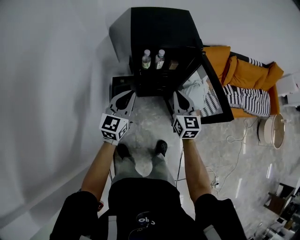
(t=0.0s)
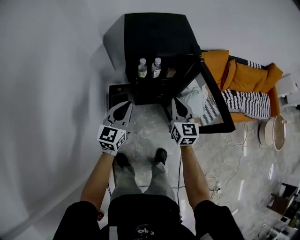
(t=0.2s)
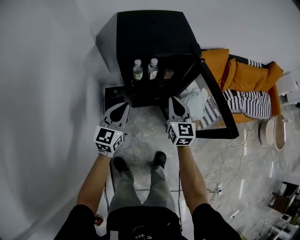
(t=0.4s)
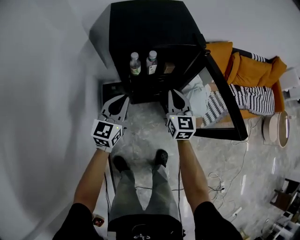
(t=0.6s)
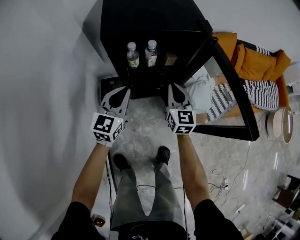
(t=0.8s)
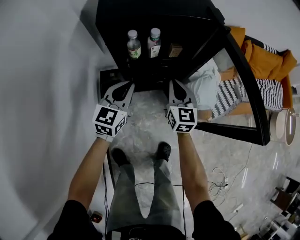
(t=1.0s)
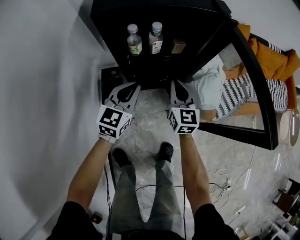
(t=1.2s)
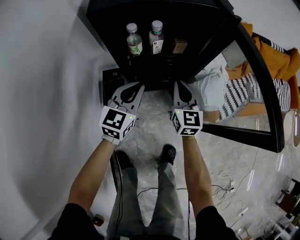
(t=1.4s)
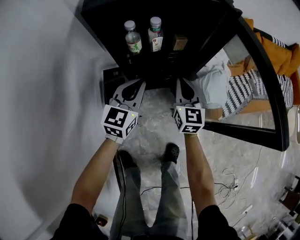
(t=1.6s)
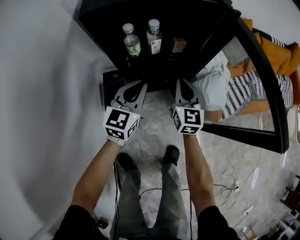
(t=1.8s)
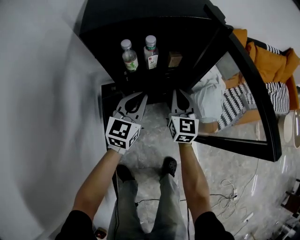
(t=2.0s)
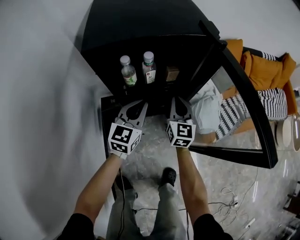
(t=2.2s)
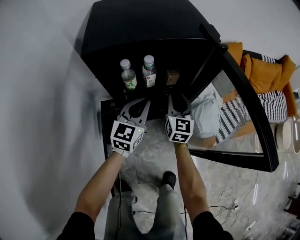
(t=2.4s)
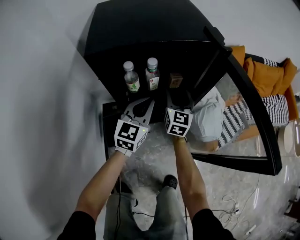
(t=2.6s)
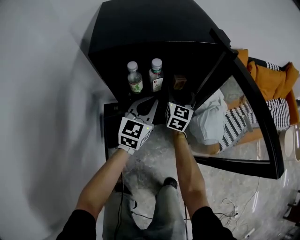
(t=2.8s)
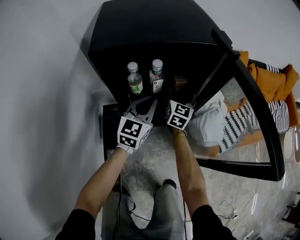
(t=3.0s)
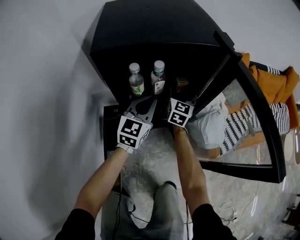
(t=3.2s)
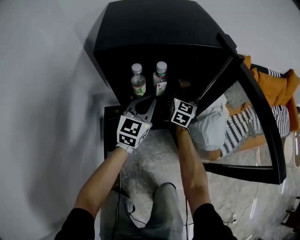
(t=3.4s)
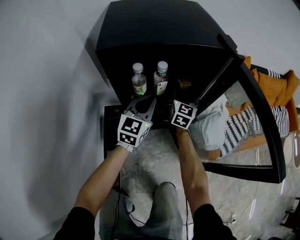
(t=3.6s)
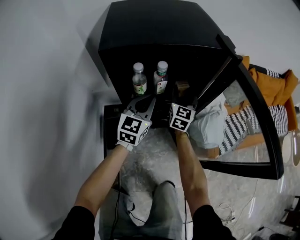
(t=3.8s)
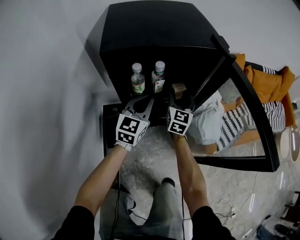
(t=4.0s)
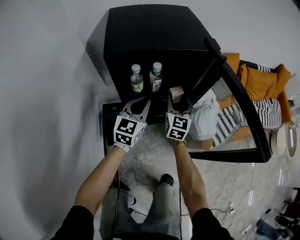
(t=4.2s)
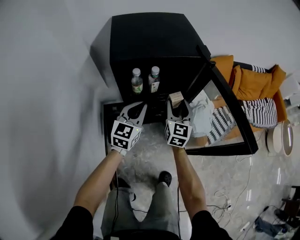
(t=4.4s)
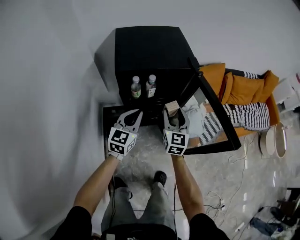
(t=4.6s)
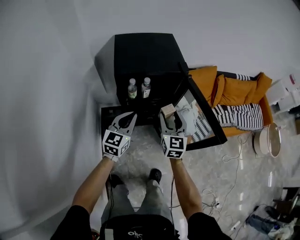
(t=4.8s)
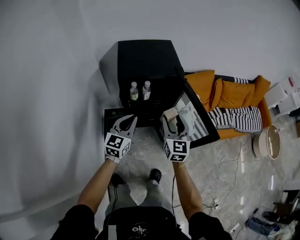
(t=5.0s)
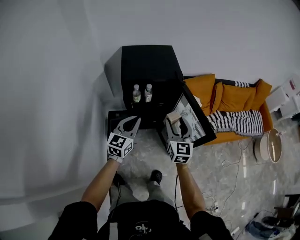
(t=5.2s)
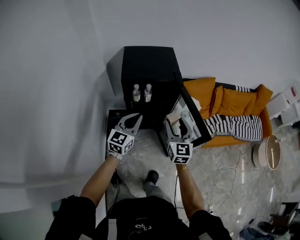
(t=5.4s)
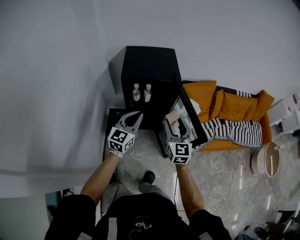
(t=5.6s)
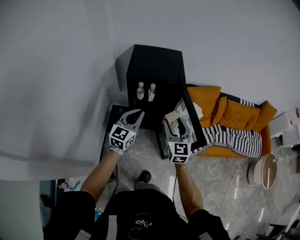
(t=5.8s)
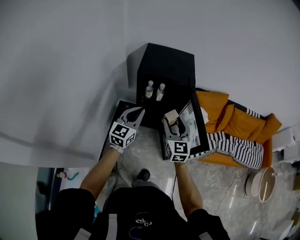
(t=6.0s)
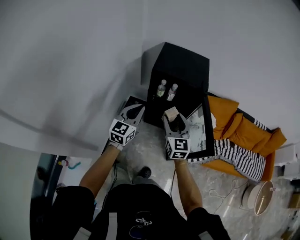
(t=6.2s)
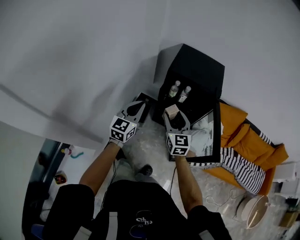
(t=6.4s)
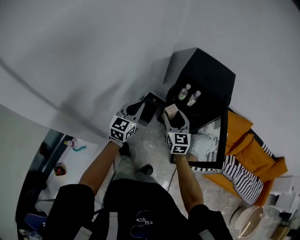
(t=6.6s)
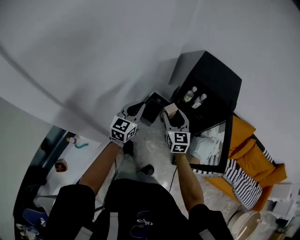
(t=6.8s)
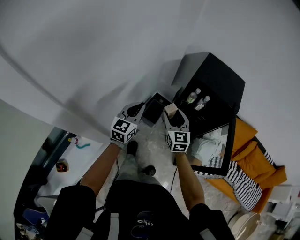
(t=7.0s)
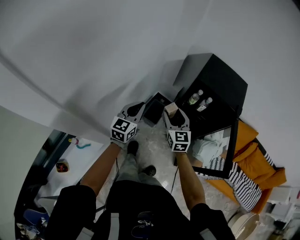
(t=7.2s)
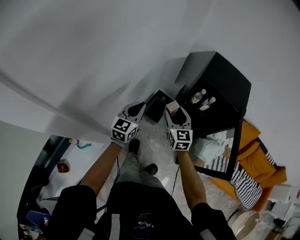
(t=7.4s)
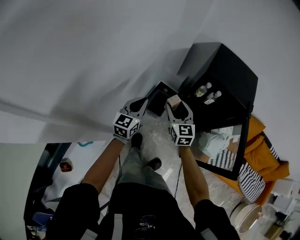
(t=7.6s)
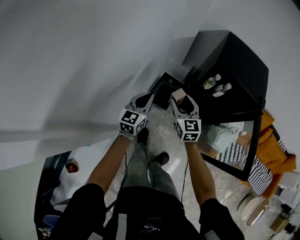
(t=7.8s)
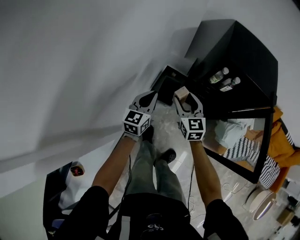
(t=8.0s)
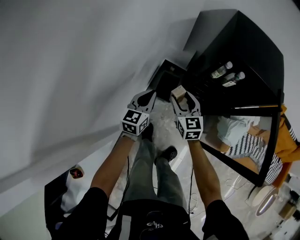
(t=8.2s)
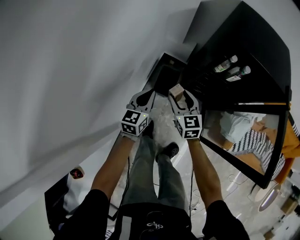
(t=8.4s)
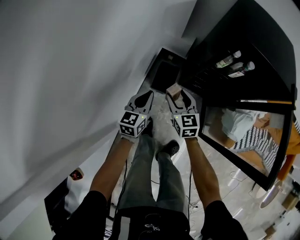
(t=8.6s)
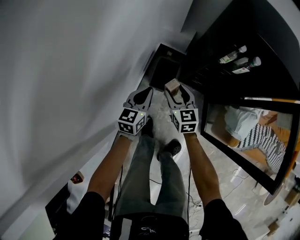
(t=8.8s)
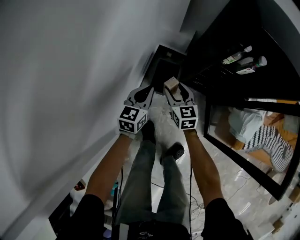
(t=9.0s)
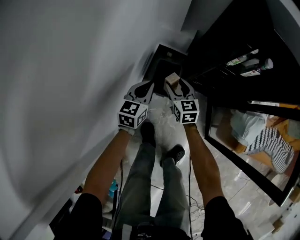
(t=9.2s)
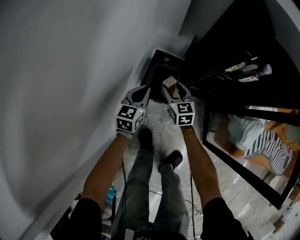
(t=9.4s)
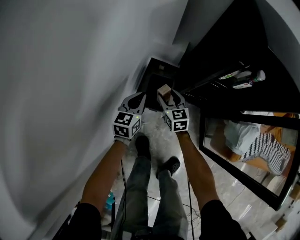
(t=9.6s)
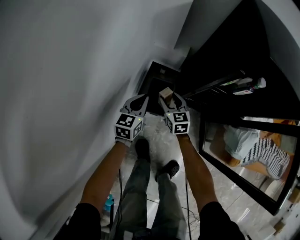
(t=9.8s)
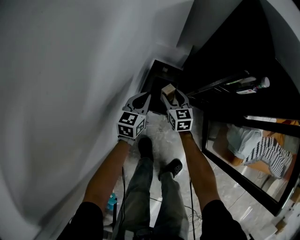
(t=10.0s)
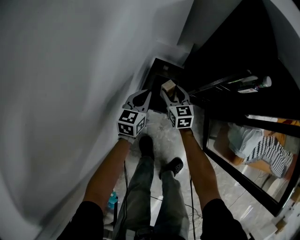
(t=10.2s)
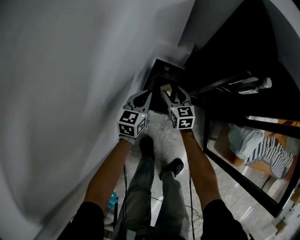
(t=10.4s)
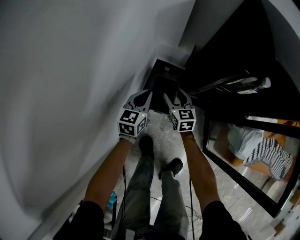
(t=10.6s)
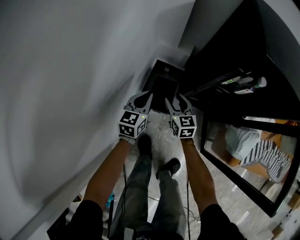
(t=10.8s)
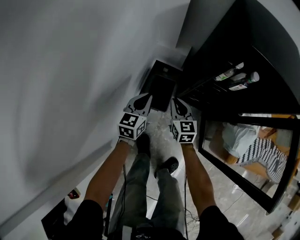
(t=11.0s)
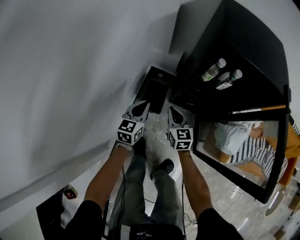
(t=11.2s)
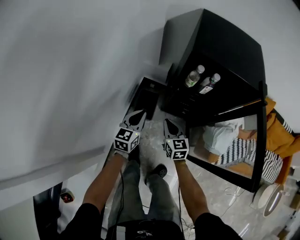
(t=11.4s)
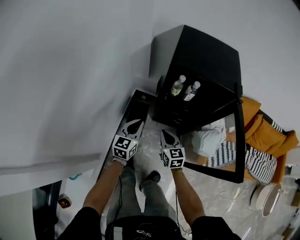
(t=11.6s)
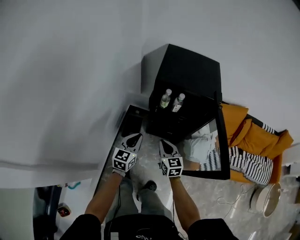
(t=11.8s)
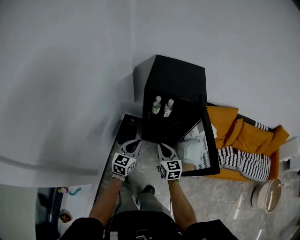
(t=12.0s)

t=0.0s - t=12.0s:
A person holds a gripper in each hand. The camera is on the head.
t=0.0s - t=1.6s: Both grippers move downward and forward, some 30 cm.
t=1.6s - t=3.0s: The right gripper shifts roughly 15 cm forward, and opens; the left gripper travels forward by roughly 10 cm.
t=3.0s - t=4.4s: The left gripper shifts approximately 10 cm upward and backward, while the right gripper moves backward and upward, some 20 cm.
t=4.4s - t=6.0s: Both grippers travel together upward and backward, some 30 cm. The right gripper turns by about 30 degrees.
t=6.0s - t=7.6s: The left gripper shifts by approximately 30 cm, and turns by about 30 degrees, while the right gripper moves roughly 30 cm, and swivels some 30 degrees.
t=7.6s - t=9.0s: The grippers both shift downward by roughly 35 cm.
t=9.0s - t=10.4s: The right gripper goes approximately 15 cm forward and downward; the left gripper heads forward, covering some 10 cm.
t=10.4s - t=12.0s: The grippers both shift upward, backward and to the right by roughly 50 cm. The right gripper closes up.

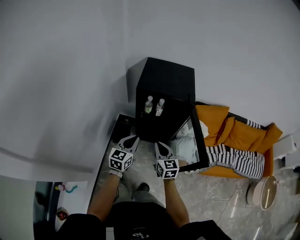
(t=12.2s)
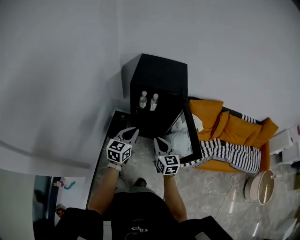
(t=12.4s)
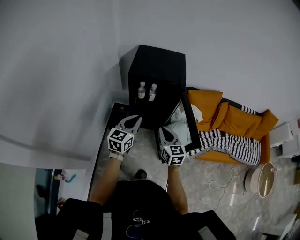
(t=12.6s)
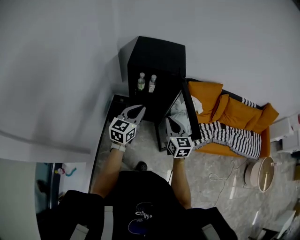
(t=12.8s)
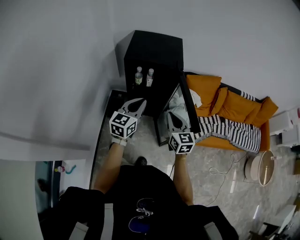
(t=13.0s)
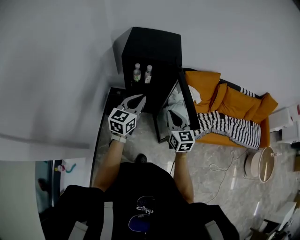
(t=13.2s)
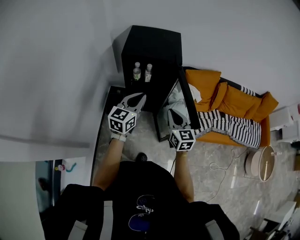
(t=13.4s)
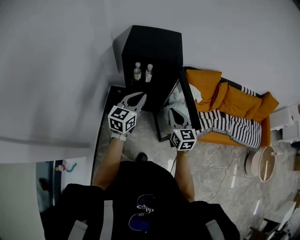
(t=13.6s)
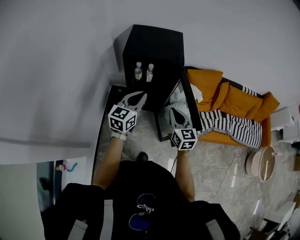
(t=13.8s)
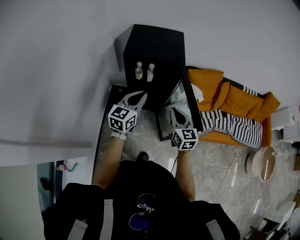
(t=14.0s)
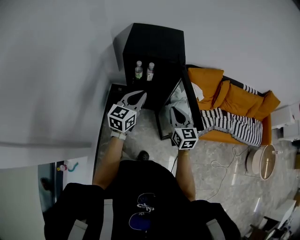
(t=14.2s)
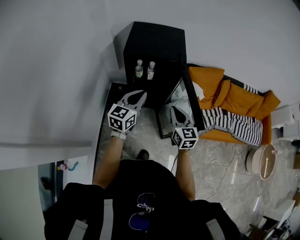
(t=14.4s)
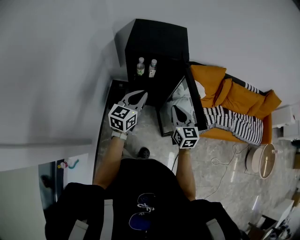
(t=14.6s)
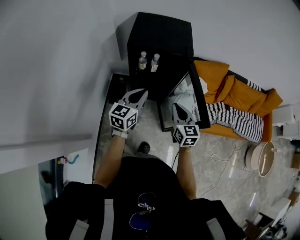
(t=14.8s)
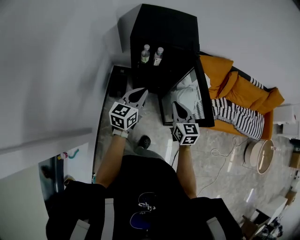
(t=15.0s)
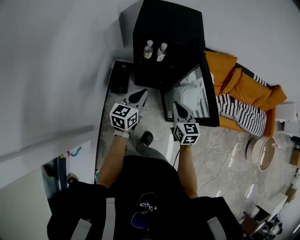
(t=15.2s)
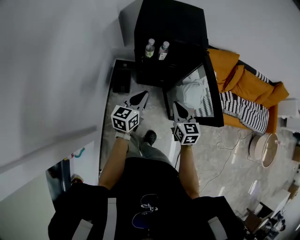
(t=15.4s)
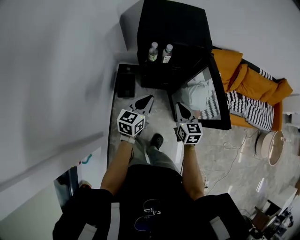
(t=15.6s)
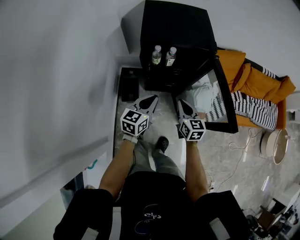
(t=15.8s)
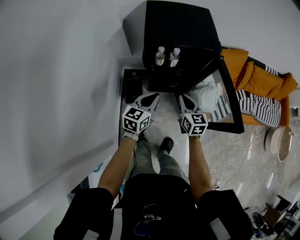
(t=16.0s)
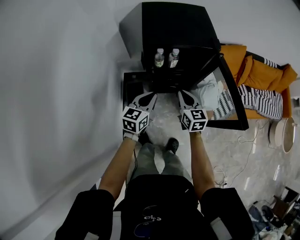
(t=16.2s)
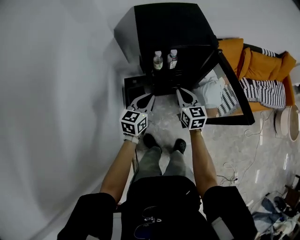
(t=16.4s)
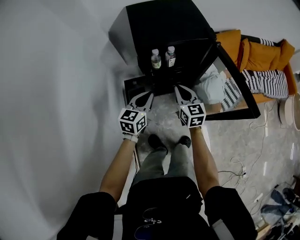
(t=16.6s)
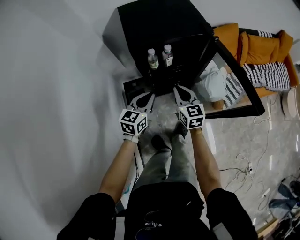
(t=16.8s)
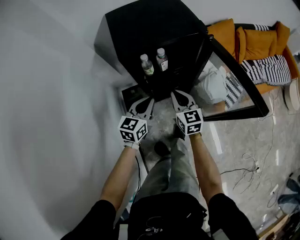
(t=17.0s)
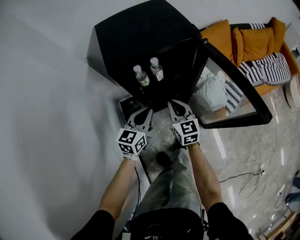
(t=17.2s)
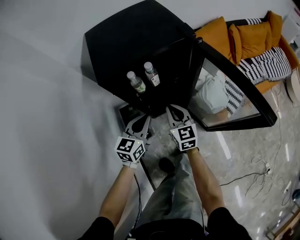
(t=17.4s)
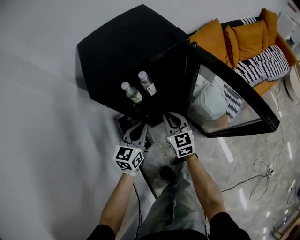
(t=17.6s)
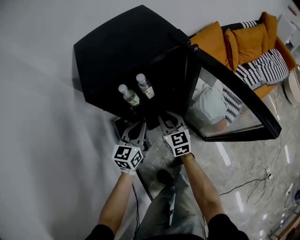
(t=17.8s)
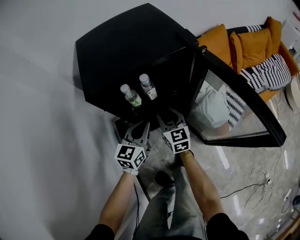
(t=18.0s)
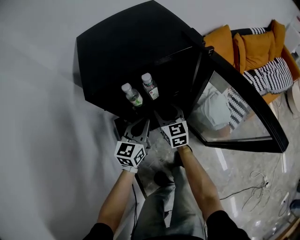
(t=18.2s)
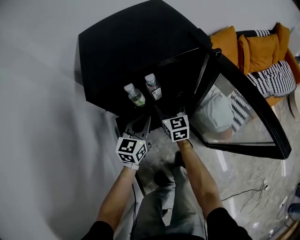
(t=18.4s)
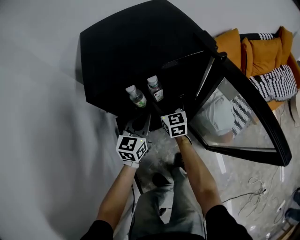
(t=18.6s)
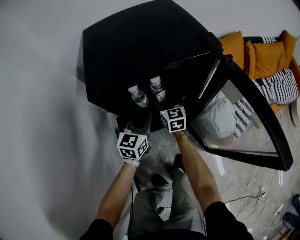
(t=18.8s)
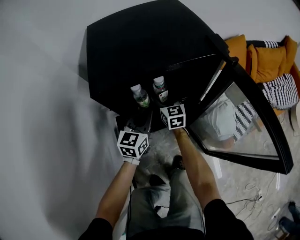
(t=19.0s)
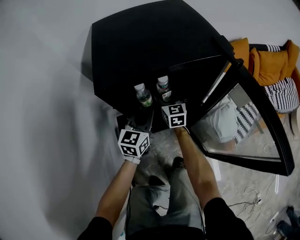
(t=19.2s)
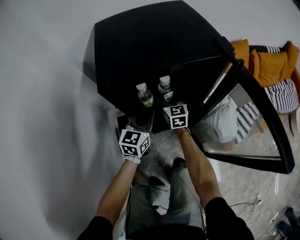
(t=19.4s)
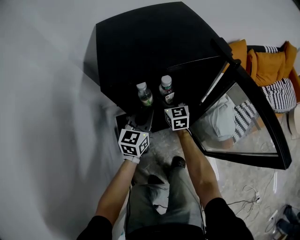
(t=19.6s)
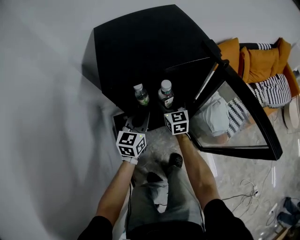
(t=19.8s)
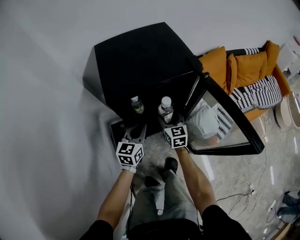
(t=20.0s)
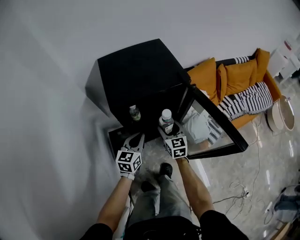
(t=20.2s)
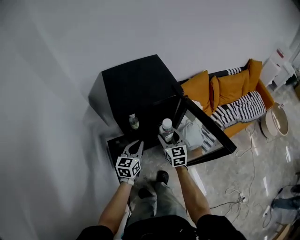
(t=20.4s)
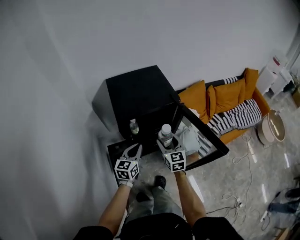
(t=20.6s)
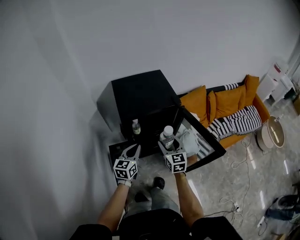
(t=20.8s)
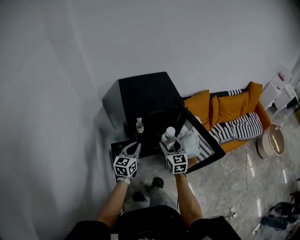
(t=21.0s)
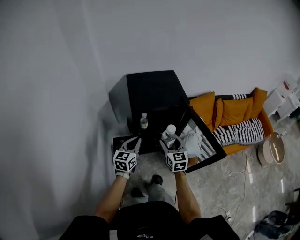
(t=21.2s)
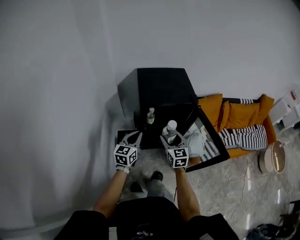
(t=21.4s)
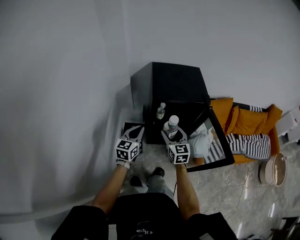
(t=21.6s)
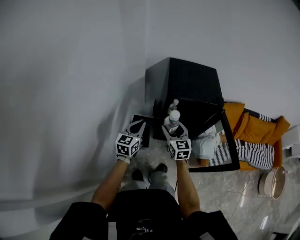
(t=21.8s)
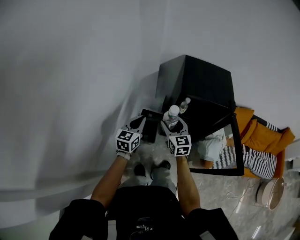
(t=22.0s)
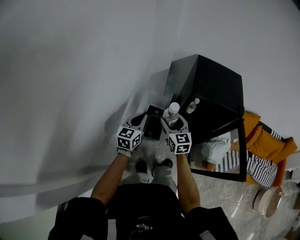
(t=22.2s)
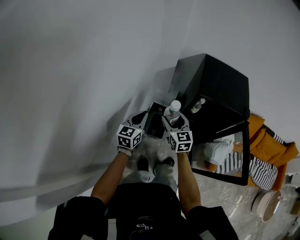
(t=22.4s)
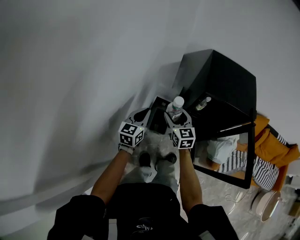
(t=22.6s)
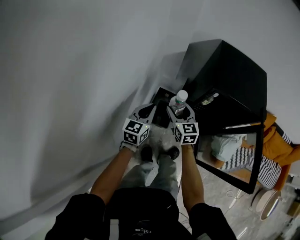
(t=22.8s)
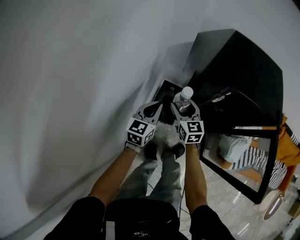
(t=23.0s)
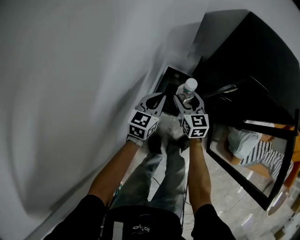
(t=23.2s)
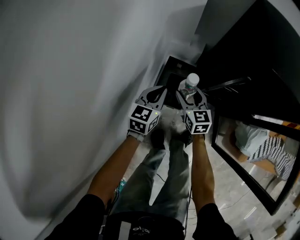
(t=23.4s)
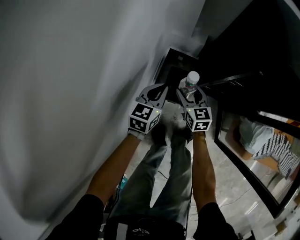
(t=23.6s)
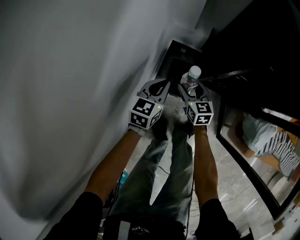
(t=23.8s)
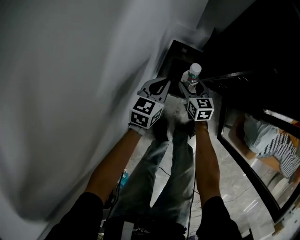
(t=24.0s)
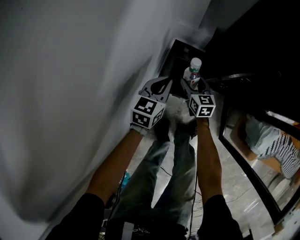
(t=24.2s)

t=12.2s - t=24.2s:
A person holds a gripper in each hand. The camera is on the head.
t=12.2s - t=13.8s: The grippers both shift to the right and upward by roughly 15 cm.
t=13.8s - t=15.2s: Both grippers travel together downward and to the left, roughly 10 cm.
t=15.2s - t=16.6s: The two grippers go some 15 cm to the left, forward and downward.
t=16.6s - t=18.2s: The grippers both shift downward and forward by roughly 20 cm. The right gripper opens.
t=18.2s - t=19.8s: The right gripper is displaced forward by roughly 5 cm.
t=19.8s - t=21.2s: The grippers both shift upward and backward by approximately 30 cm.
t=21.2s - t=22.6s: The right gripper moves about 30 cm, and changes its angle by roughly 30 degrees, while the left gripper ends up approximately 25 cm from where it was, and turns by roughly 30 degrees.
t=22.6s - t=24.2s: The two grippers go roughly 40 cm downward.
